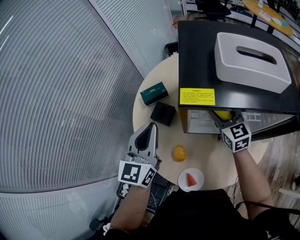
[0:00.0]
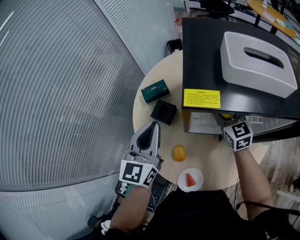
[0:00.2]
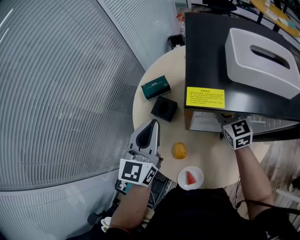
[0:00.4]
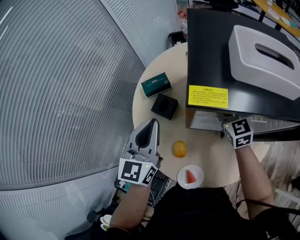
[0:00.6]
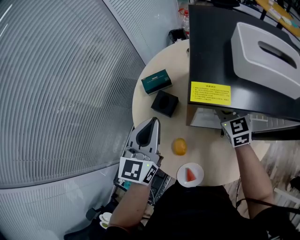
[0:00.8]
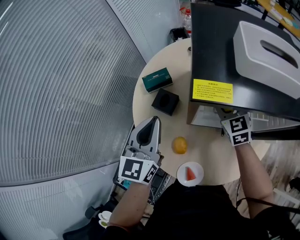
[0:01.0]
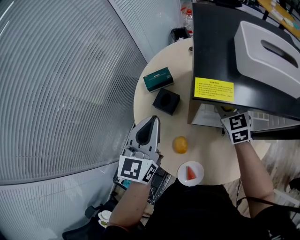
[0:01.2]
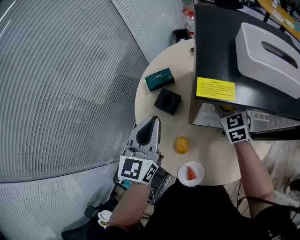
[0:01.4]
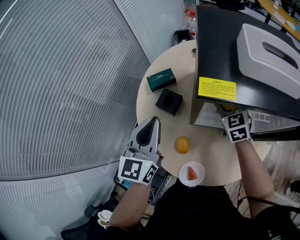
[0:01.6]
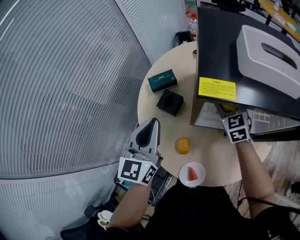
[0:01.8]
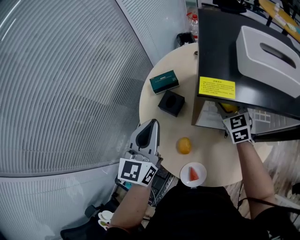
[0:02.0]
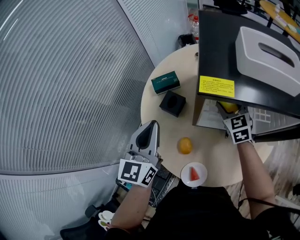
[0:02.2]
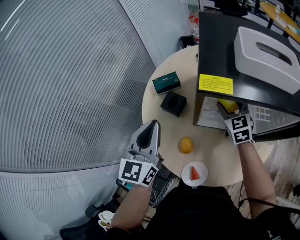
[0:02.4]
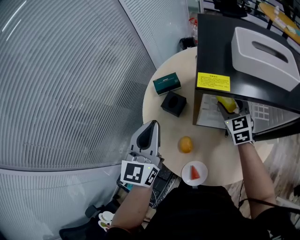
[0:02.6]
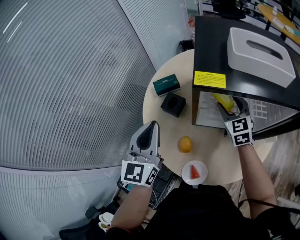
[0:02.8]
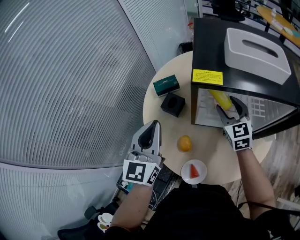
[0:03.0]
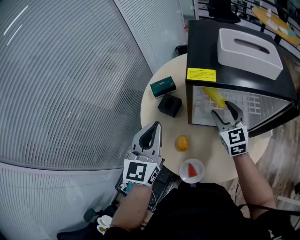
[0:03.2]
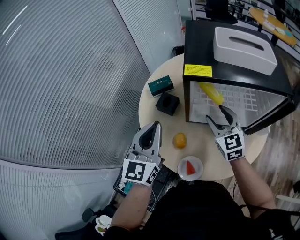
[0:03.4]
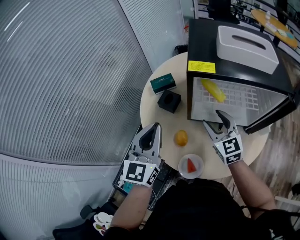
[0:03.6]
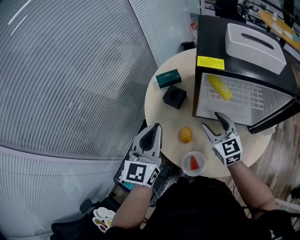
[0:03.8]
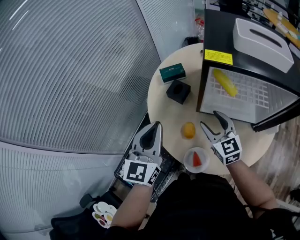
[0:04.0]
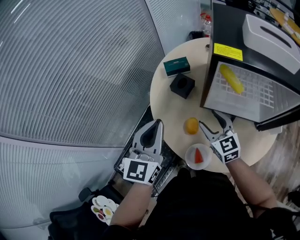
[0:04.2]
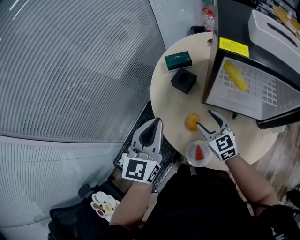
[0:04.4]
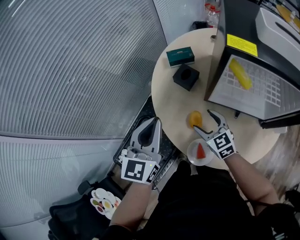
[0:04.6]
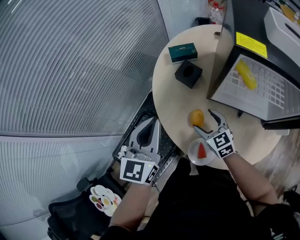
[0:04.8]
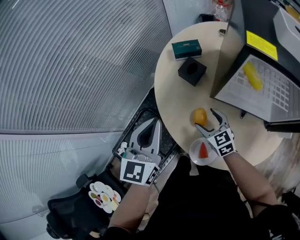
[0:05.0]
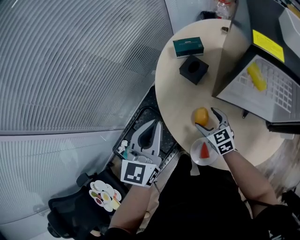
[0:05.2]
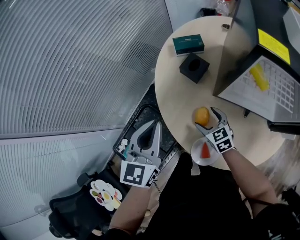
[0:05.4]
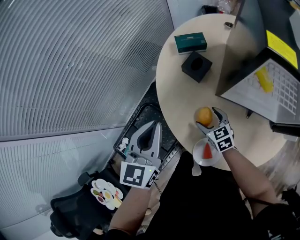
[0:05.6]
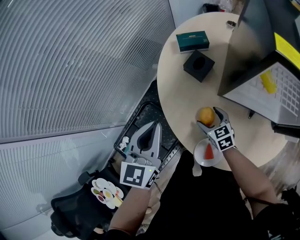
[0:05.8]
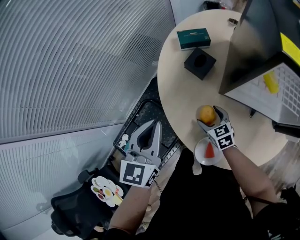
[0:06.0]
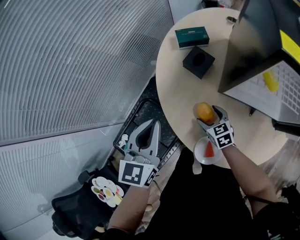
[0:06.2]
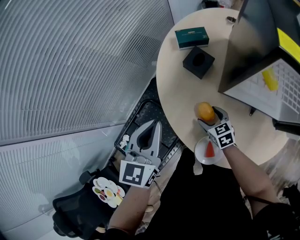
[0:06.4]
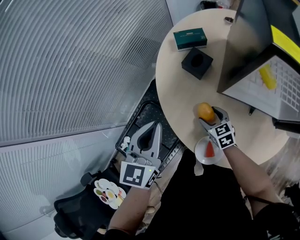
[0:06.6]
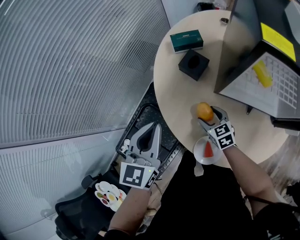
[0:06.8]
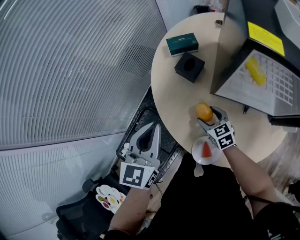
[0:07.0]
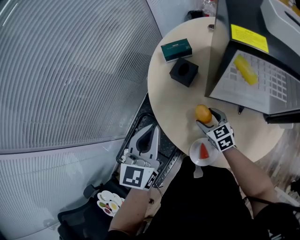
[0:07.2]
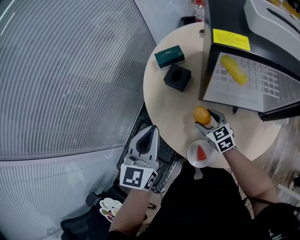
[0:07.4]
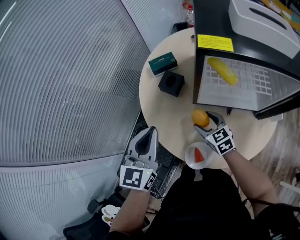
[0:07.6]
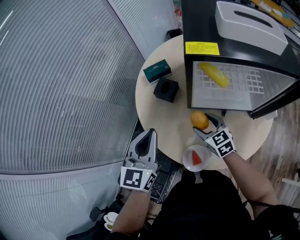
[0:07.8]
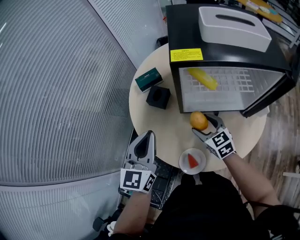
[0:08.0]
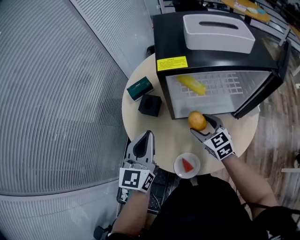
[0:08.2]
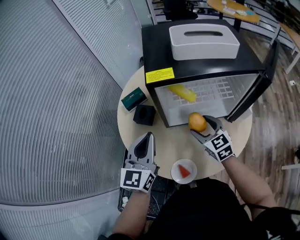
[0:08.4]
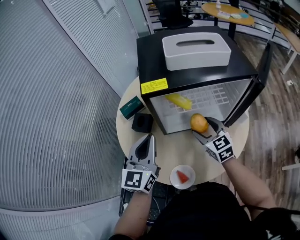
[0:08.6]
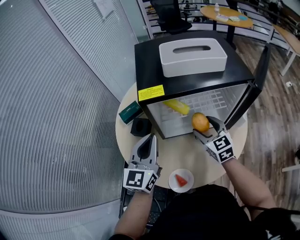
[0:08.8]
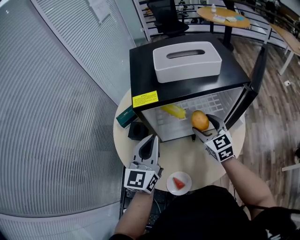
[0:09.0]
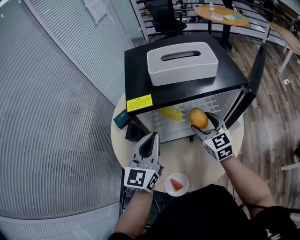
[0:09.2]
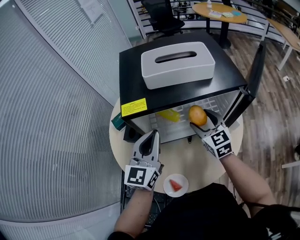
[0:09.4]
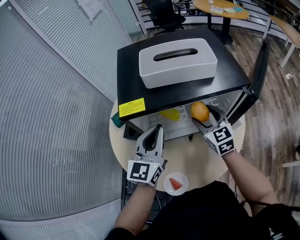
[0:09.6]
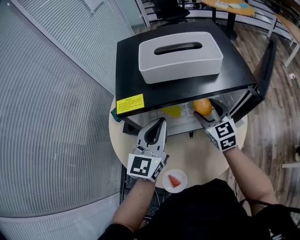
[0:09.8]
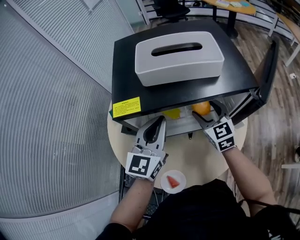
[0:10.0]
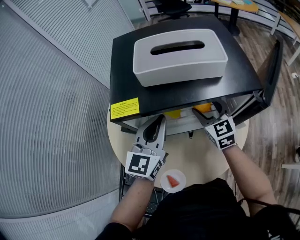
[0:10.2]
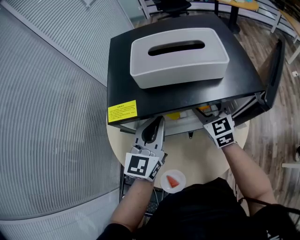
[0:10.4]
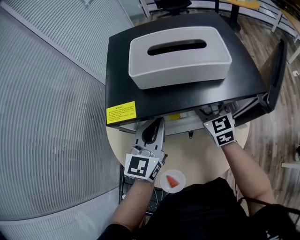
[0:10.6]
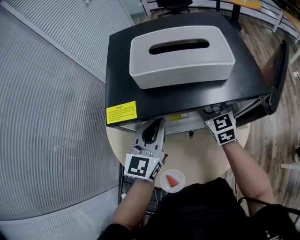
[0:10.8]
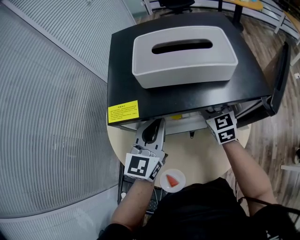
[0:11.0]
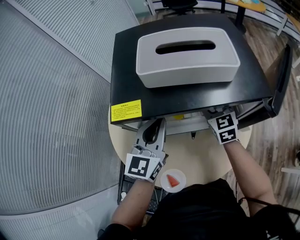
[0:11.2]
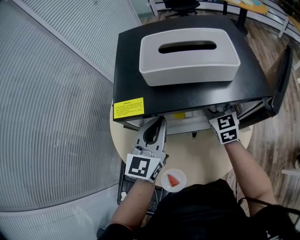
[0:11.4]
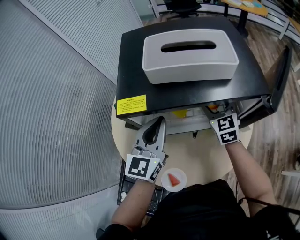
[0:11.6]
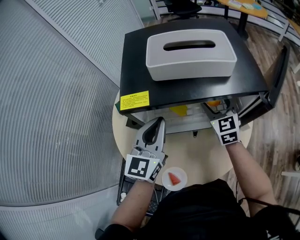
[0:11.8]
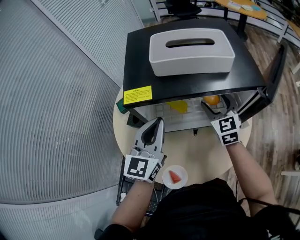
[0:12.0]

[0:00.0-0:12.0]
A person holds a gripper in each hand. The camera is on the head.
0:00.0 to 0:01.6: The grippers move only a little.
0:01.6 to 0:03.0: The right gripper travels backward and upward by some 10 cm; the left gripper shifts roughly 5 cm backward.
0:03.0 to 0:04.4: The right gripper shifts about 20 cm to the left, backward and downward, and turns by roughly 20 degrees; the left gripper heads backward, to the left and downward, covering roughly 10 cm.
0:04.4 to 0:06.0: The left gripper is displaced downward and to the left by some 10 cm, while the right gripper goes approximately 20 cm downward, and rotates roughly 20 degrees.
0:06.0 to 0:07.6: The right gripper heads upward and to the right, covering some 15 cm, while the left gripper shifts approximately 10 cm to the right and upward.
0:07.6 to 0:09.0: The left gripper shifts about 20 cm to the right, forward and upward, and changes its angle by roughly 20 degrees, while the right gripper is displaced to the right and upward by some 25 cm, and turns by about 30 degrees.
0:09.0 to 0:10.4: The left gripper travels forward and to the right by some 10 cm. The right gripper heads forward, covering about 10 cm.
0:10.4 to 0:12.0: The left gripper moves about 5 cm.

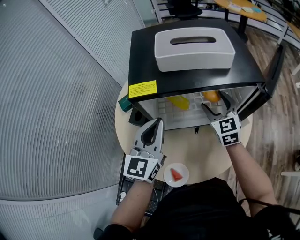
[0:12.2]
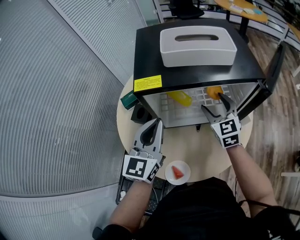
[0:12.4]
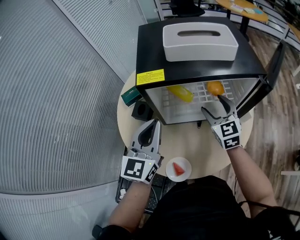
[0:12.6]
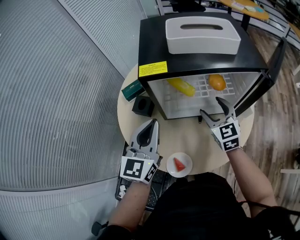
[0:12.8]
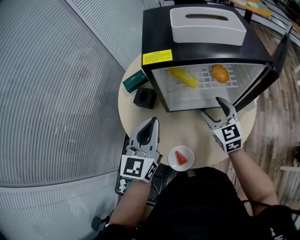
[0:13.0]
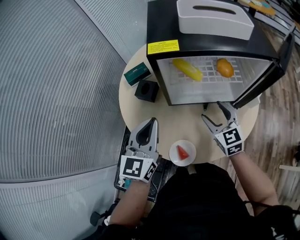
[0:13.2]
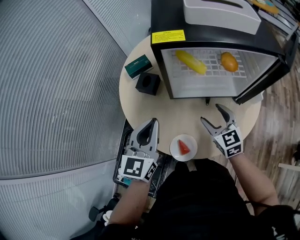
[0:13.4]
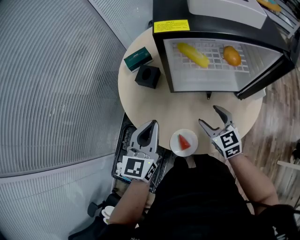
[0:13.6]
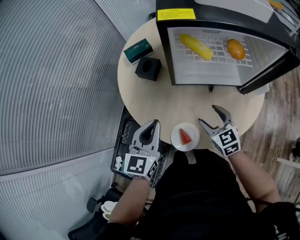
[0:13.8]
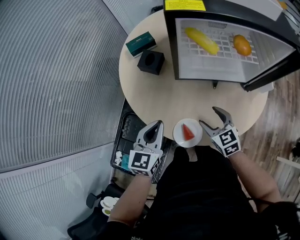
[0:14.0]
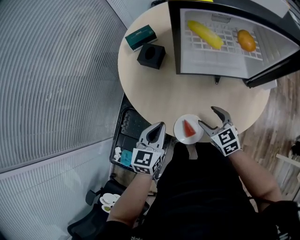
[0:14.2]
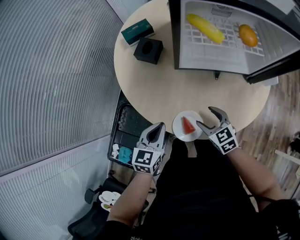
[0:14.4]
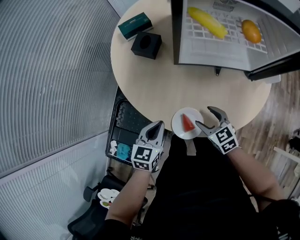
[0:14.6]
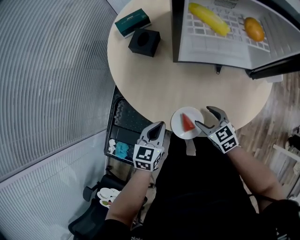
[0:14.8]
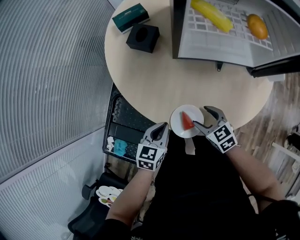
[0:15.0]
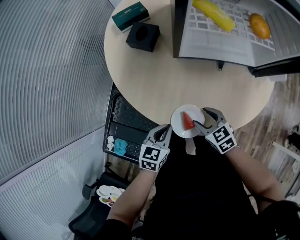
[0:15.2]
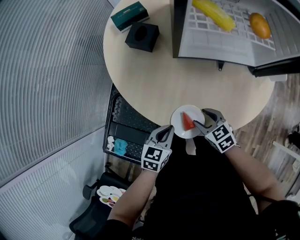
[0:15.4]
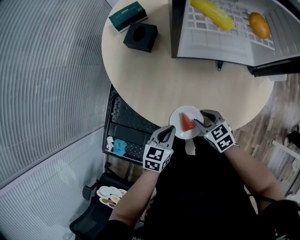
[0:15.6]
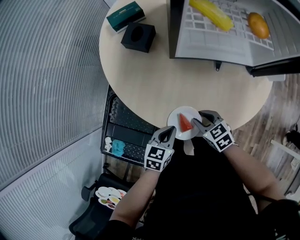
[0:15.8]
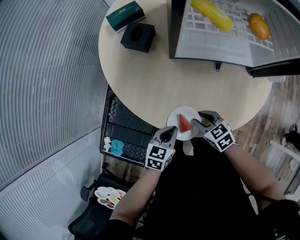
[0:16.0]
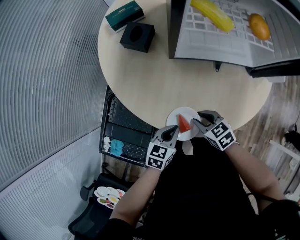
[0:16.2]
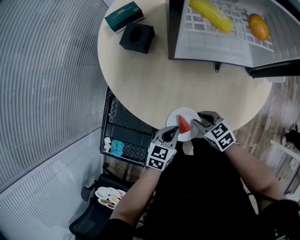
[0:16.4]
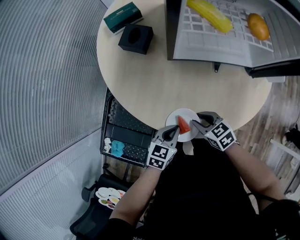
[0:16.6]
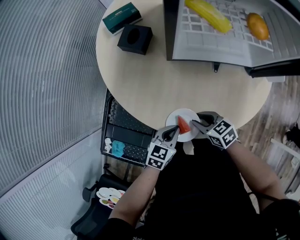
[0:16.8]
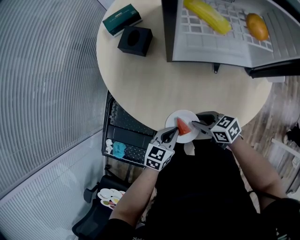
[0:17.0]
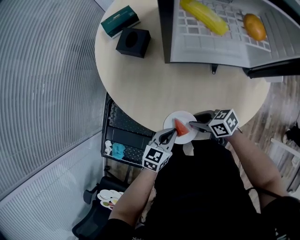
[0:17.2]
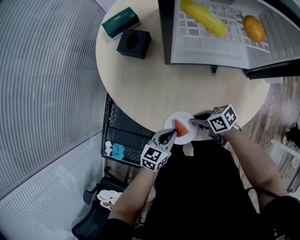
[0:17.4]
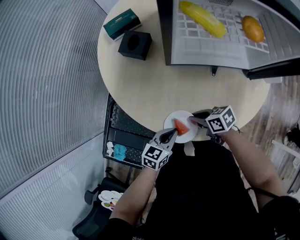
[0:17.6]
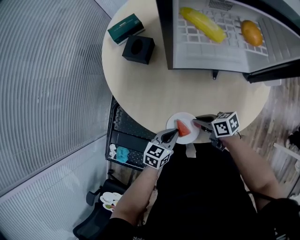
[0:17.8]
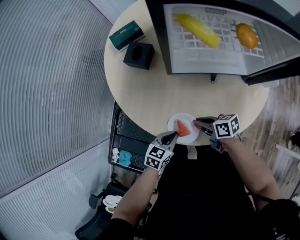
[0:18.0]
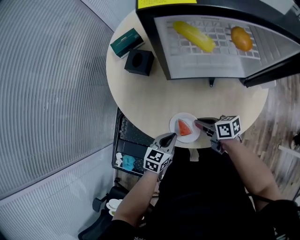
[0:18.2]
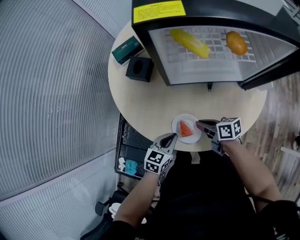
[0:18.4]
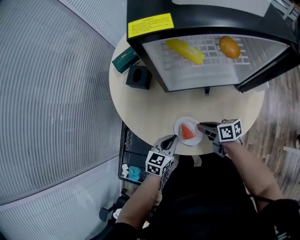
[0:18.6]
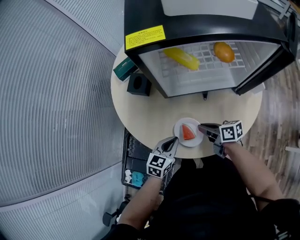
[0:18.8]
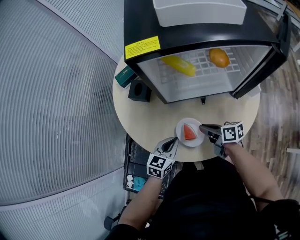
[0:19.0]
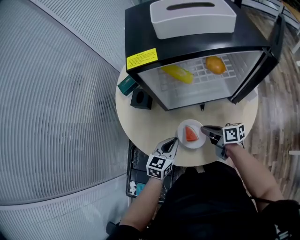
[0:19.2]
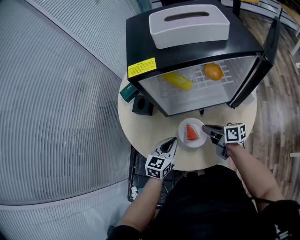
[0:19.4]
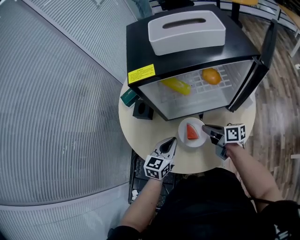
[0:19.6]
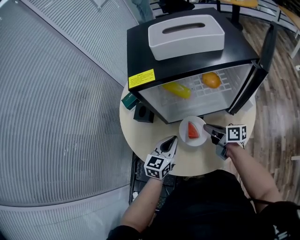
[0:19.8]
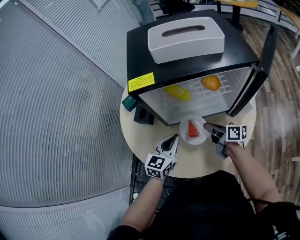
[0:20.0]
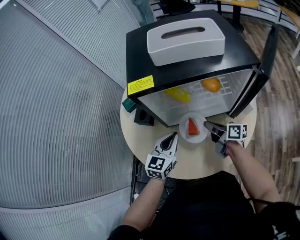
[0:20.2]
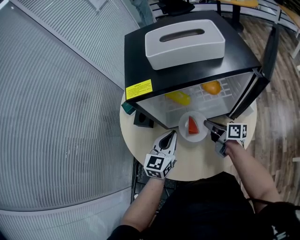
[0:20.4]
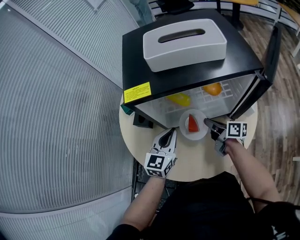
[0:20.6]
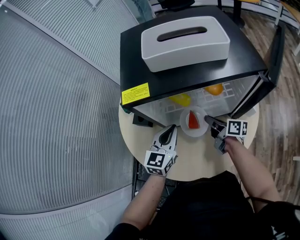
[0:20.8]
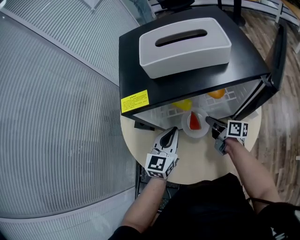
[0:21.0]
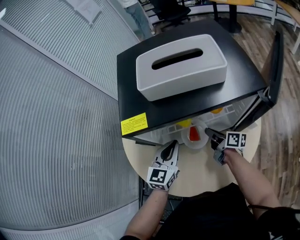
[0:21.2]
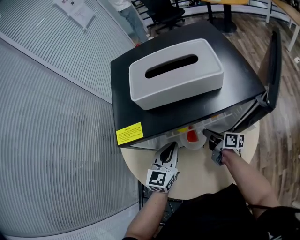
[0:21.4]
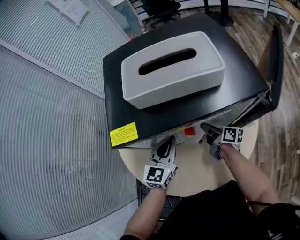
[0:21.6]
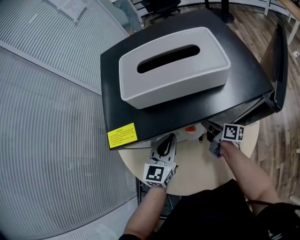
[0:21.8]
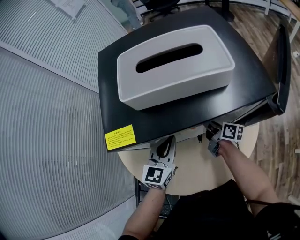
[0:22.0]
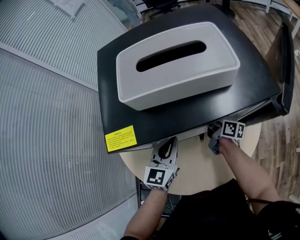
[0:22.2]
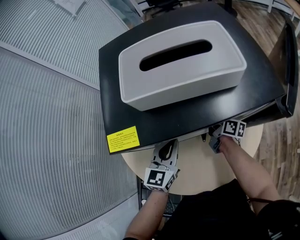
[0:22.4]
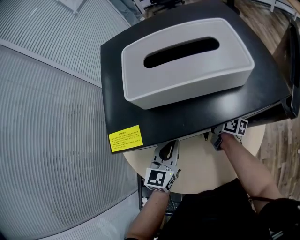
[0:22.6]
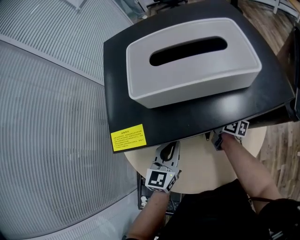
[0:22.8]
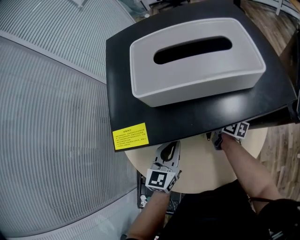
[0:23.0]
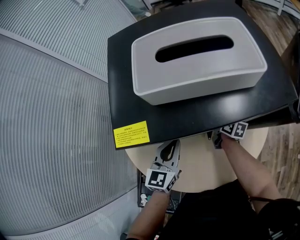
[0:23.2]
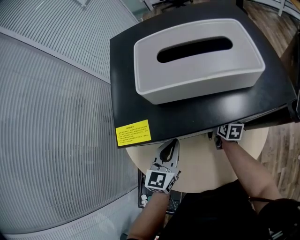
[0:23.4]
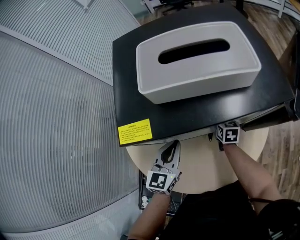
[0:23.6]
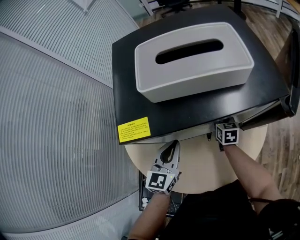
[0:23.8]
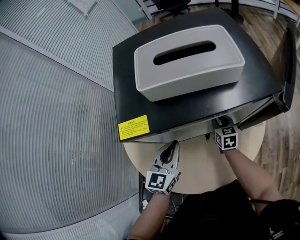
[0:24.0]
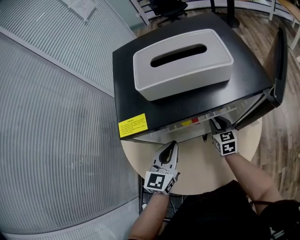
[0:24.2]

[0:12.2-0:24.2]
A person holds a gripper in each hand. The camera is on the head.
0:12.2 to 0:13.8: The left gripper moves downward, backward and to the left, roughly 25 cm. The right gripper travels backward, downward and to the left by some 30 cm, and swivels roughly 20 degrees.
0:13.8 to 0:15.2: The left gripper shifts roughly 20 cm downward, and changes its angle by about 30 degrees. Meanwhile the right gripper heads downward and backward, covering roughly 15 cm, and rotates about 20 degrees.
0:15.2 to 0:16.6: The right gripper closes up. The left gripper shifts some 5 cm to the right.
0:16.6 to 0:18.2: The right gripper ends up approximately 5 cm from where it was, and changes its angle by roughly 40 degrees.
0:18.2 to 0:19.8: The left gripper heads upward and forward, covering some 20 cm, and turns by approximately 20 degrees; the right gripper goes about 20 cm upward, to the right and forward, and rotates about 30 degrees.
0:19.8 to 0:21.2: The right gripper goes approximately 10 cm forward, while the left gripper shifts approximately 10 cm forward and upward.
0:21.2 to 0:22.6: The right gripper goes some 10 cm forward.
0:22.6 to 0:24.2: The right gripper shifts by about 5 cm, and rolls counterclockwise, seen from behind, by approximately 50 degrees.
